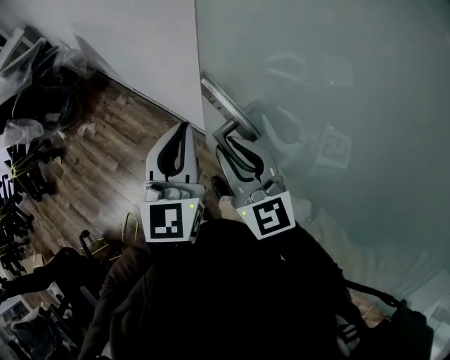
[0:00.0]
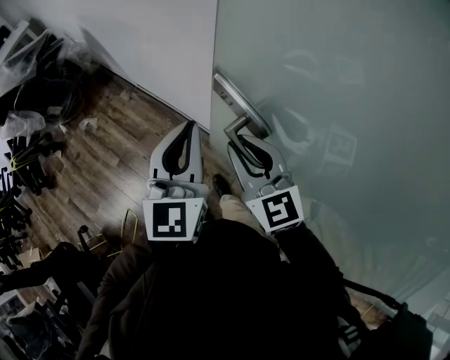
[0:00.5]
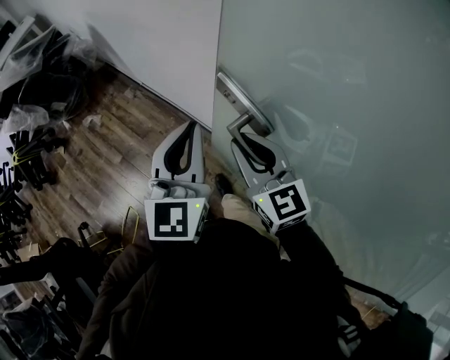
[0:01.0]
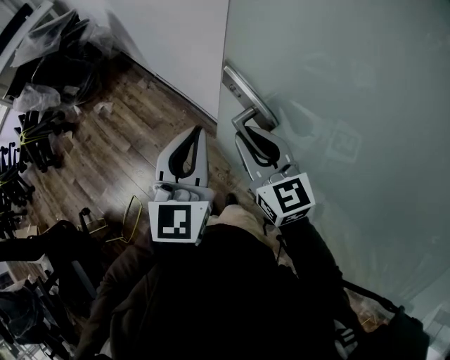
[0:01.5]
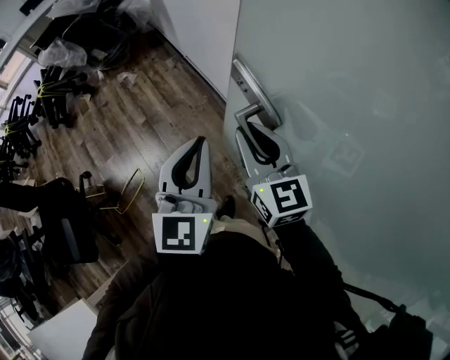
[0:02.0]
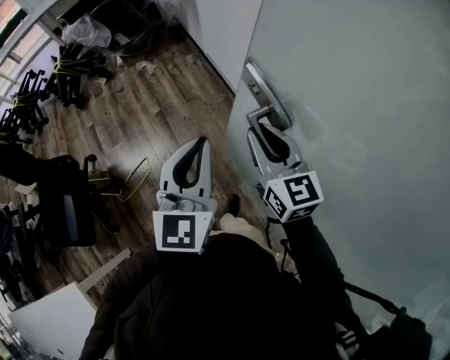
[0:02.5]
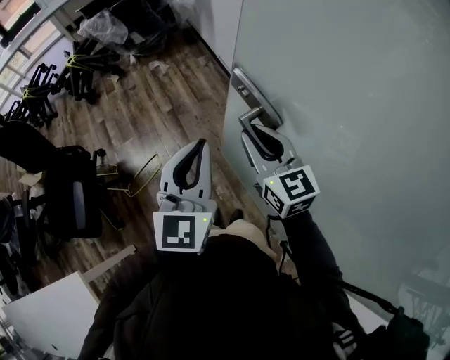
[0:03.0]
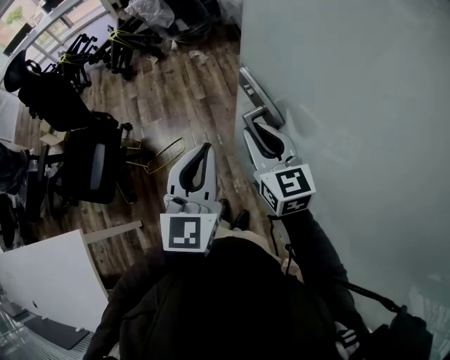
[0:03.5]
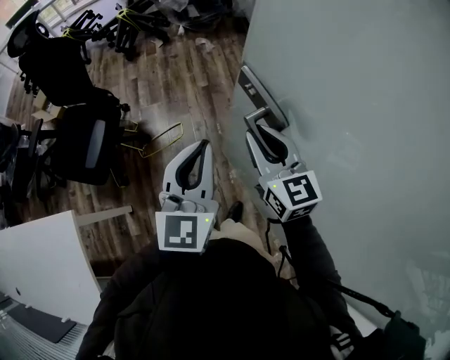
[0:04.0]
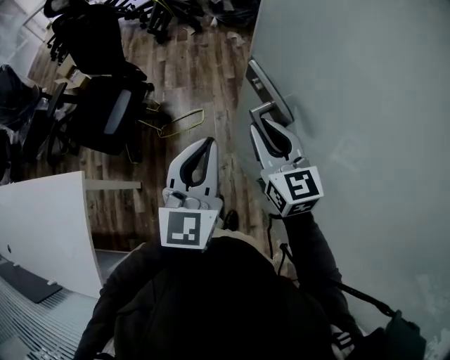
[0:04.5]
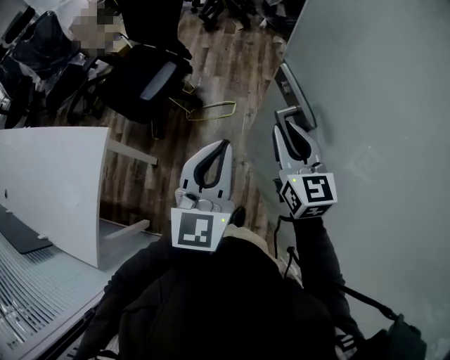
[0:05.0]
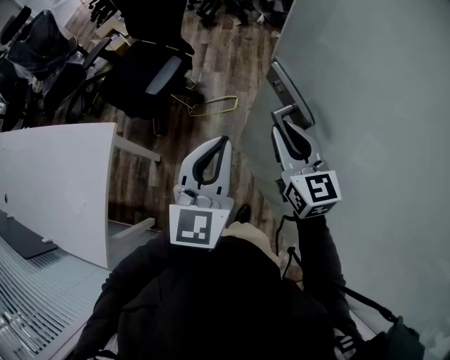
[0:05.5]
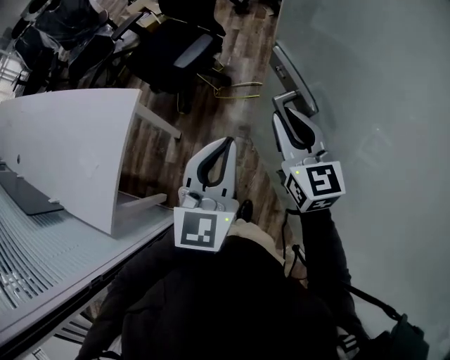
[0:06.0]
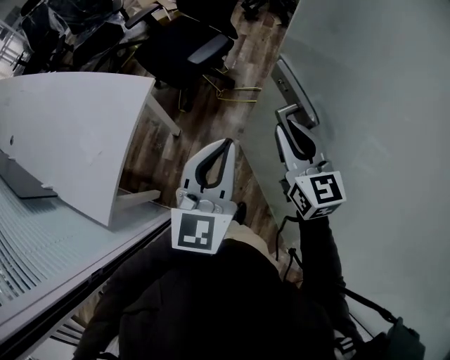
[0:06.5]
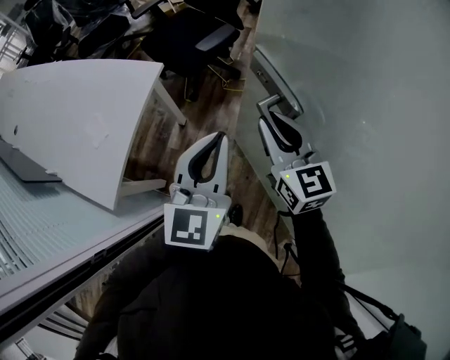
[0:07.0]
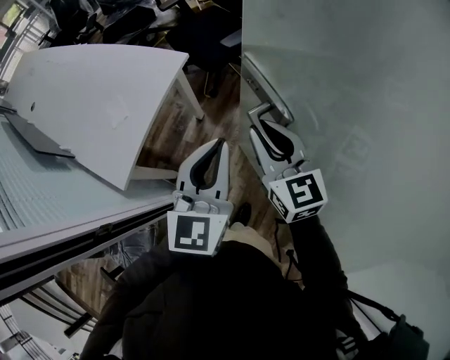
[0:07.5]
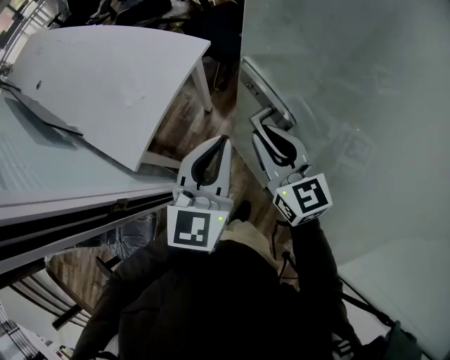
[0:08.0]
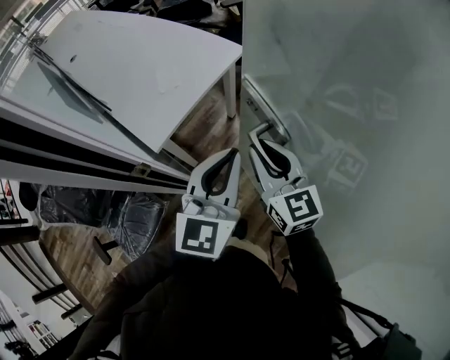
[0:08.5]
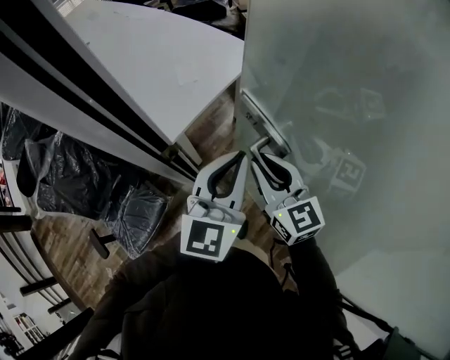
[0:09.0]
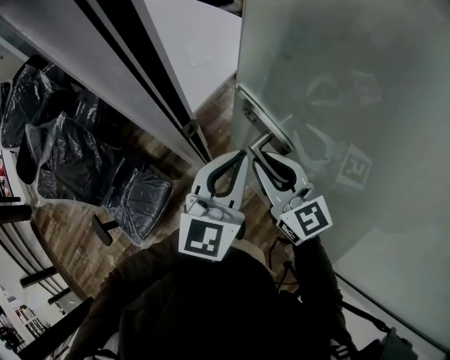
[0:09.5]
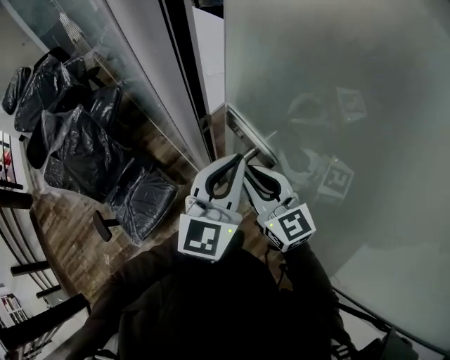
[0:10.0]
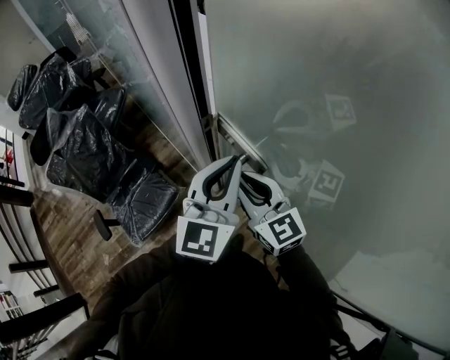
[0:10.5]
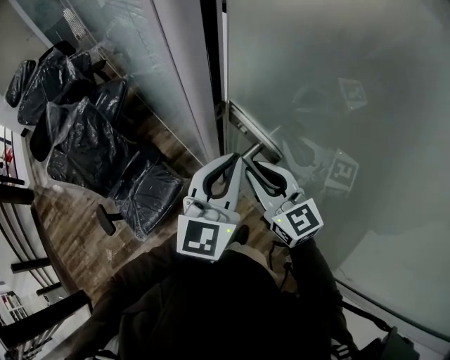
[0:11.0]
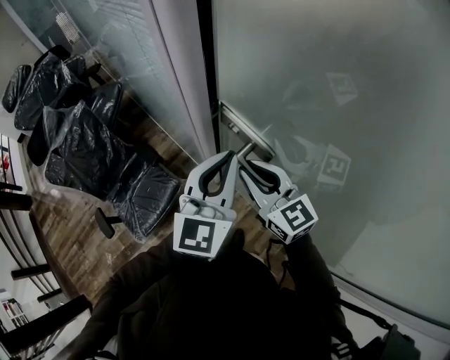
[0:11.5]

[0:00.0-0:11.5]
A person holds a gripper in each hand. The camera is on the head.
0:00.0 to 0:02.0: The left gripper shifts roughly 15 cm backward and to the left; the right gripper travels to the left and backward by some 10 cm.
0:02.0 to 0:04.0: The pair of grippers is taken to the left and backward, roughly 40 cm. The right gripper turns by roughly 20 degrees. Meanwhile the left gripper changes its angle by roughly 20 degrees.
0:04.0 to 0:06.0: The right gripper shifts about 25 cm to the left and backward, and swivels about 20 degrees. The left gripper heads backward and to the left, covering about 30 cm, and swivels about 20 degrees.
0:06.0 to 0:07.5: Both grippers move to the left and backward, approximately 20 cm.
0:07.5 to 0:09.5: The two grippers go roughly 35 cm to the left and backward. The right gripper turns by some 20 degrees.
0:09.5 to 0:11.5: The grippers both shift to the left and backward by approximately 10 cm.

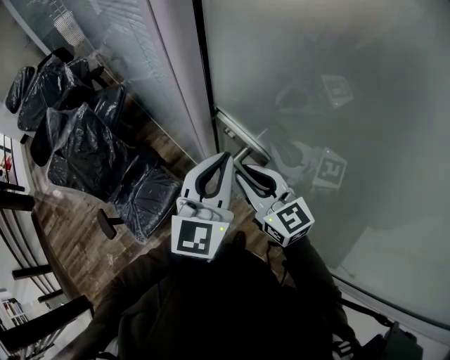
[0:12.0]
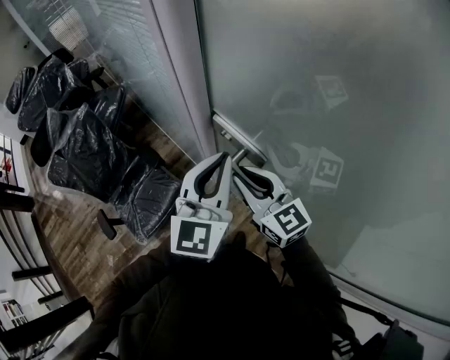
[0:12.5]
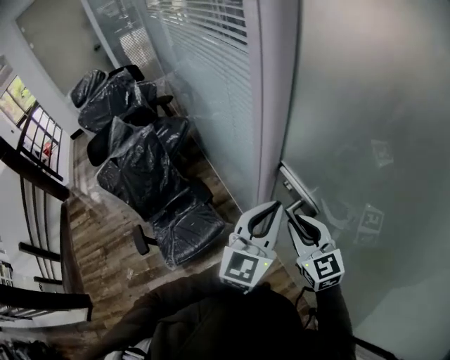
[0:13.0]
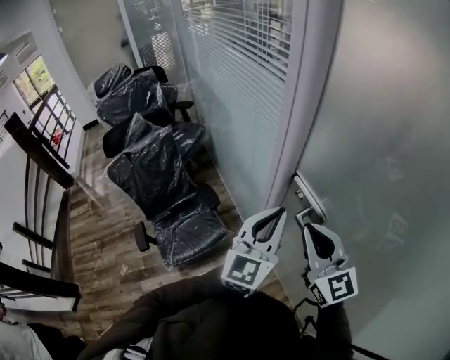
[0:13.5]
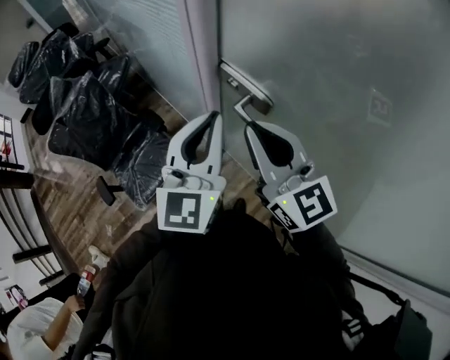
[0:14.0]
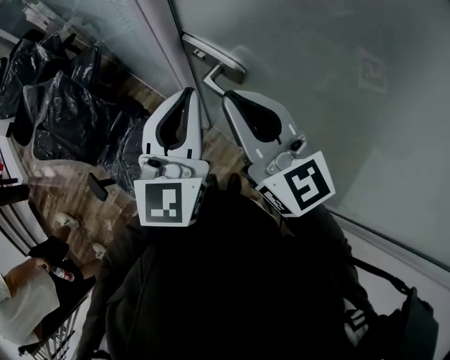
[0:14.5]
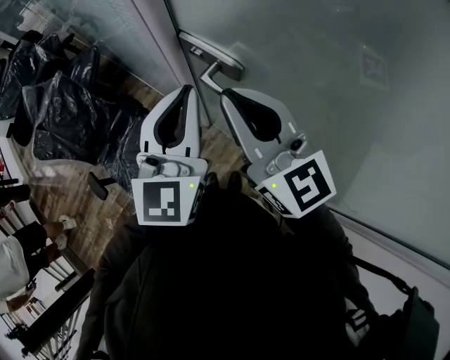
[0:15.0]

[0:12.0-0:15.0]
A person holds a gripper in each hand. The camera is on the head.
0:12.0 to 0:13.5: The left gripper travels to the left by approximately 5 cm. Meanwhile the right gripper shifts roughly 10 cm upward.
0:13.5 to 0:15.0: There are only small adjustments of the grippers.

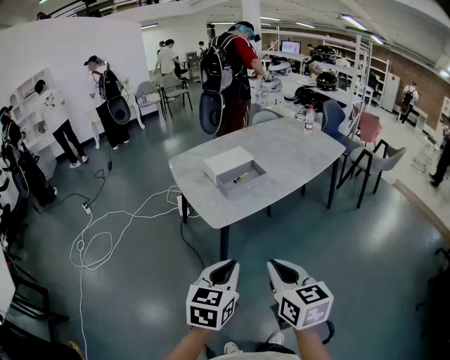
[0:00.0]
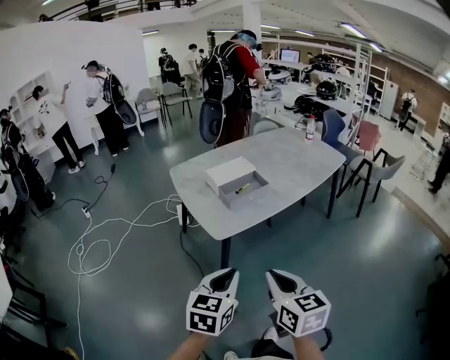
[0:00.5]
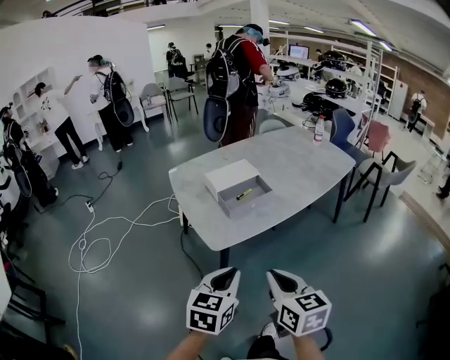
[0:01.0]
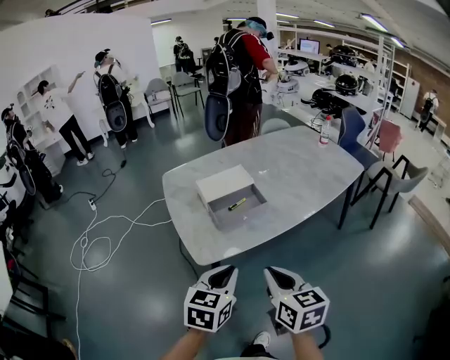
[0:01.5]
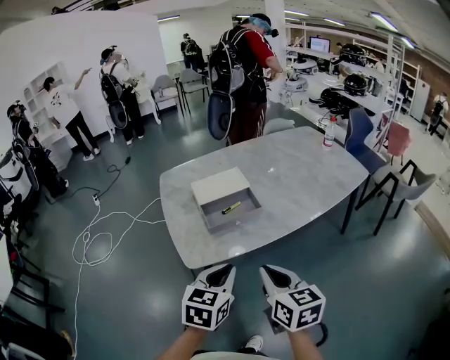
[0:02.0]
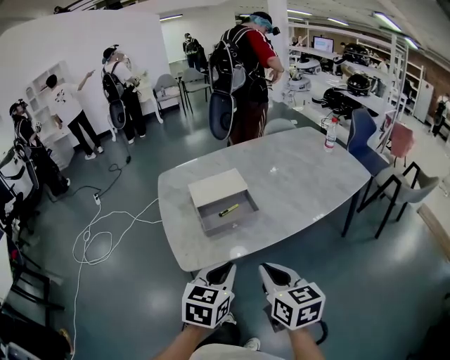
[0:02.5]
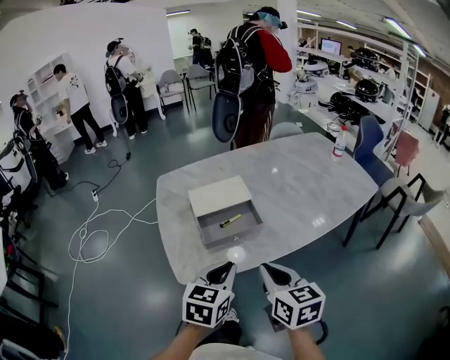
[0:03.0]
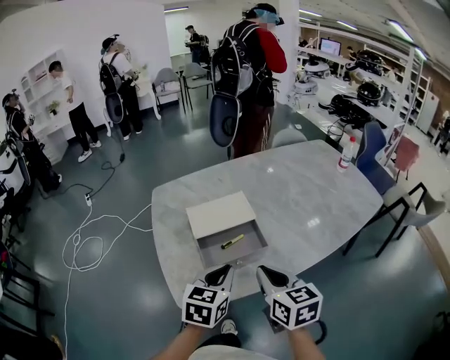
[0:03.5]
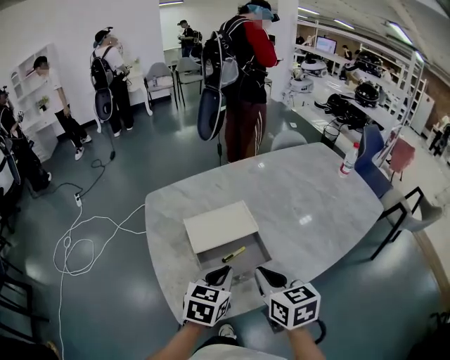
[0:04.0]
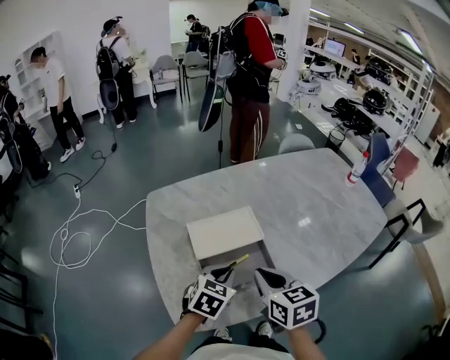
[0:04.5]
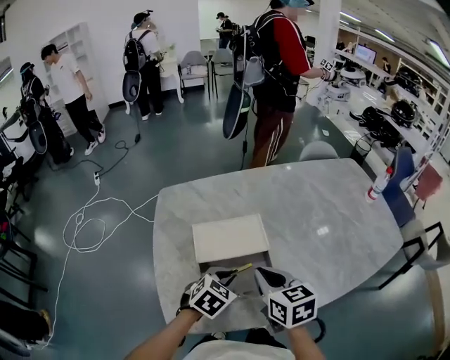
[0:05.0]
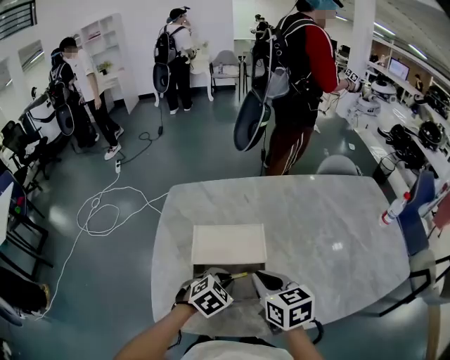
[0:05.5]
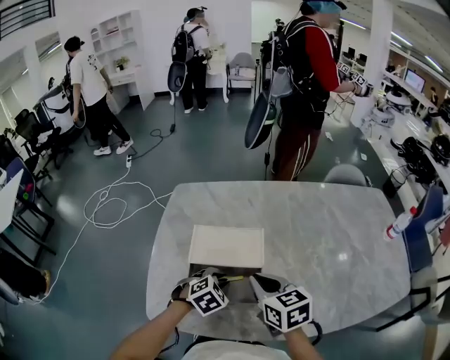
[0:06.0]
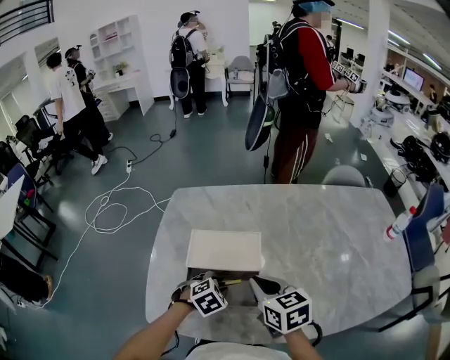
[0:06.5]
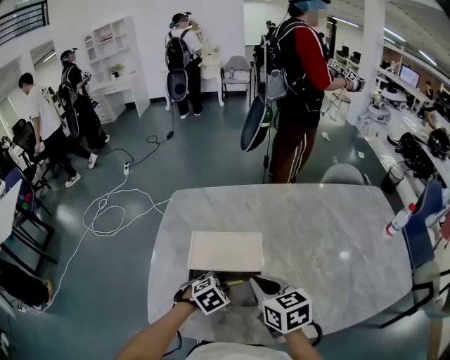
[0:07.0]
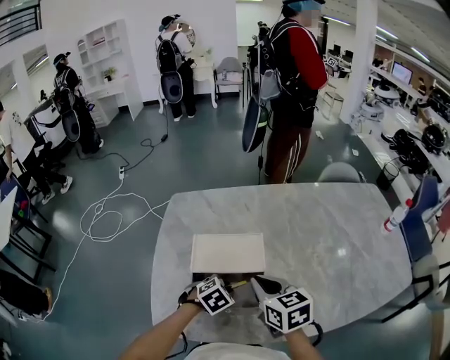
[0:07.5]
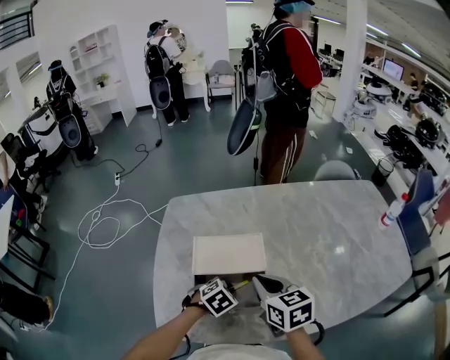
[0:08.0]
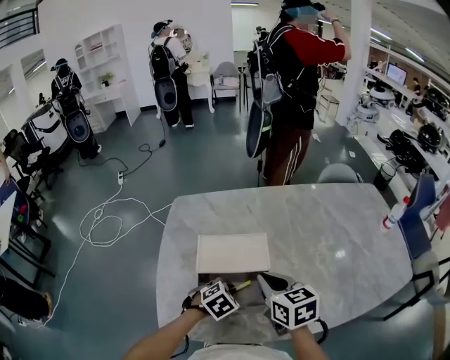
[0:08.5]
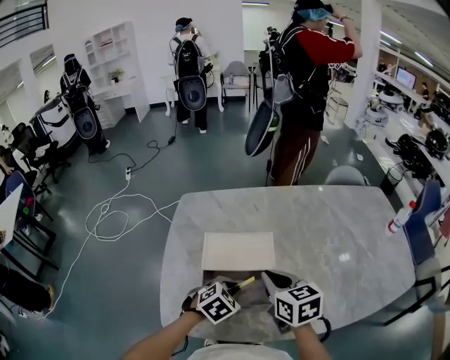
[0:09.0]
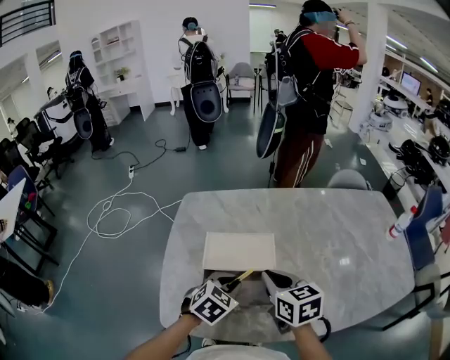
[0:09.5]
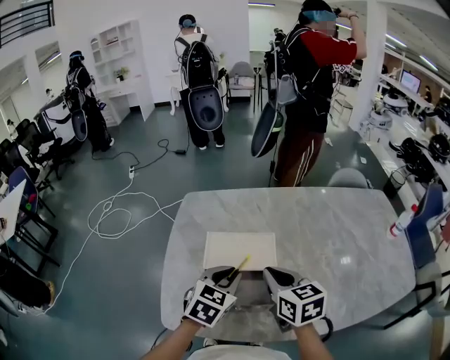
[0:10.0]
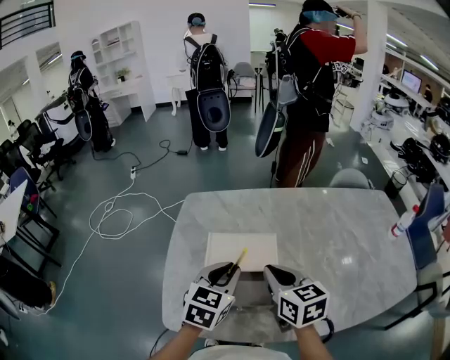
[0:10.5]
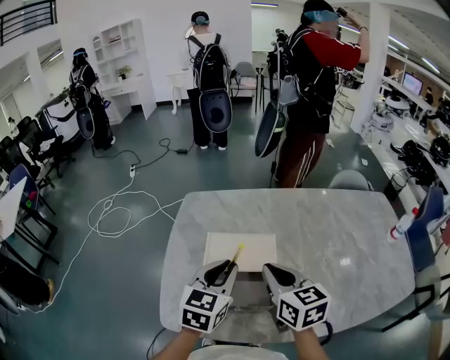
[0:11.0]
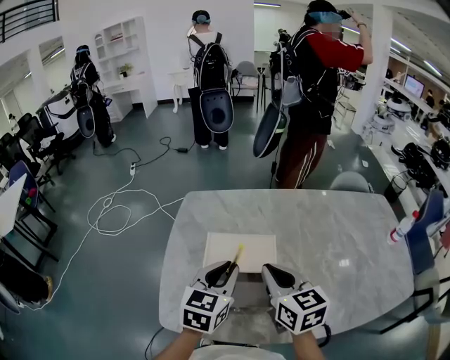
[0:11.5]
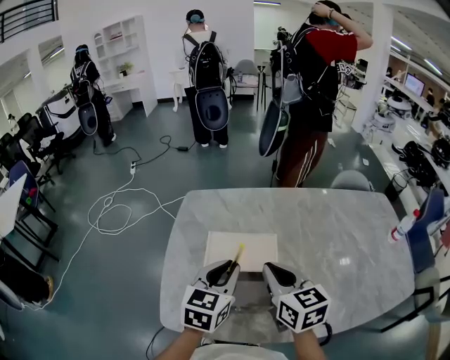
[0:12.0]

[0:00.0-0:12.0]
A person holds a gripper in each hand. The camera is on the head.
0:00.0 to 0:02.0: Both grippers travel together forward and to the right, some 25 cm.
0:02.0 to 0:04.0: Both grippers travel together forward, roughly 25 cm.
0:04.0 to 0:06.0: The right gripper shifts about 15 cm forward, and turns by approximately 30 degrees; the left gripper shifts some 15 cm downward and forward, and turns by roughly 30 degrees.
0:06.0 to 0:08.0: The grippers make only small movements.
0:08.0 to 0:10.0: The left gripper travels upward by approximately 15 cm, and swivels roughly 40 degrees.
0:10.0 to 0:12.0: The left gripper heads upward, covering roughly 5 cm.
